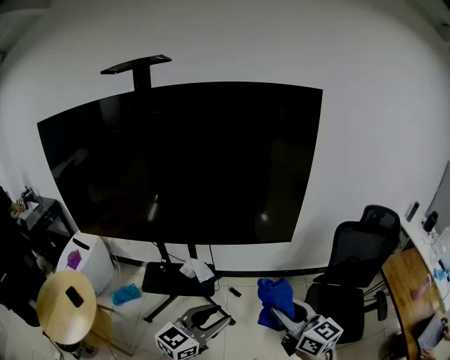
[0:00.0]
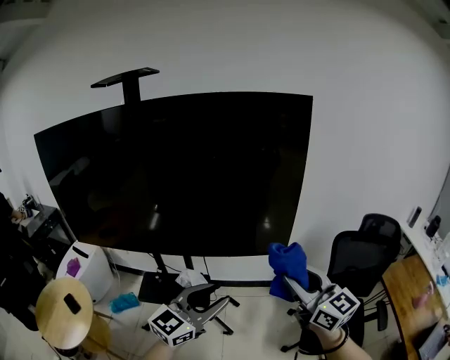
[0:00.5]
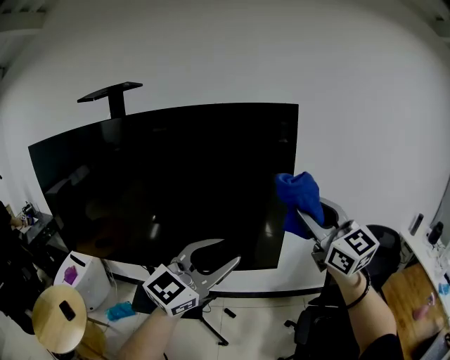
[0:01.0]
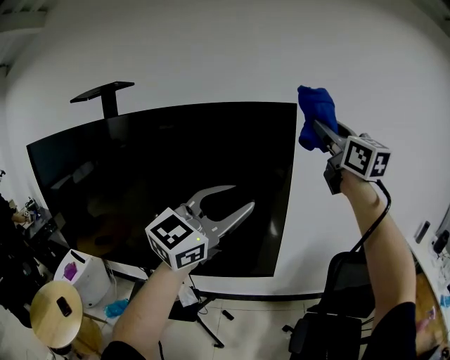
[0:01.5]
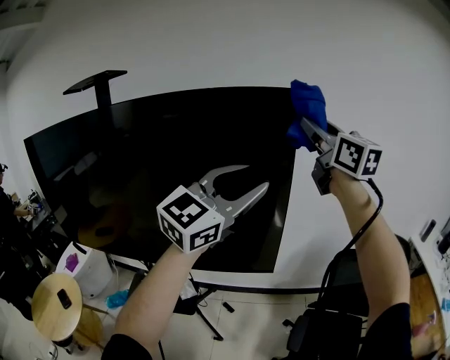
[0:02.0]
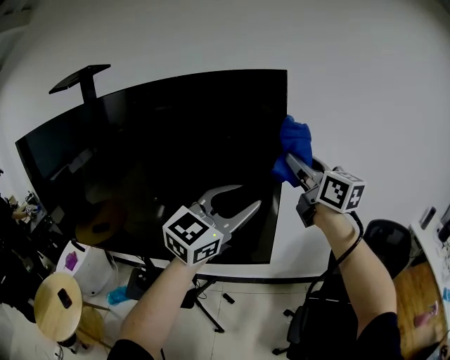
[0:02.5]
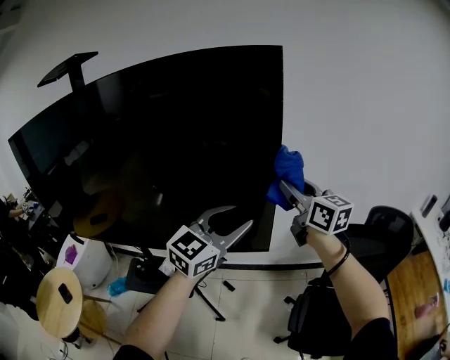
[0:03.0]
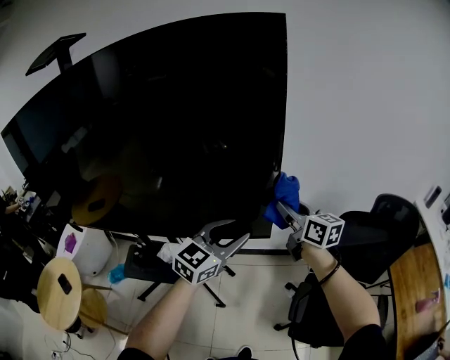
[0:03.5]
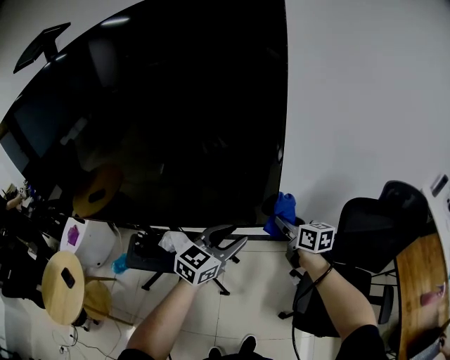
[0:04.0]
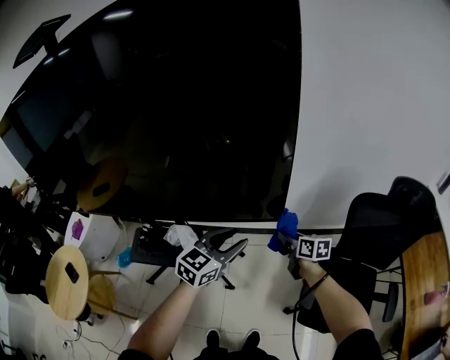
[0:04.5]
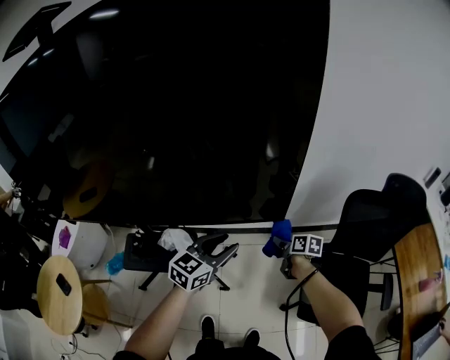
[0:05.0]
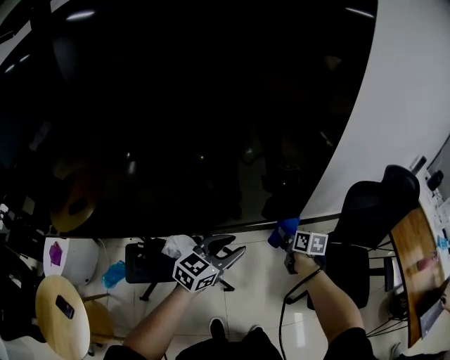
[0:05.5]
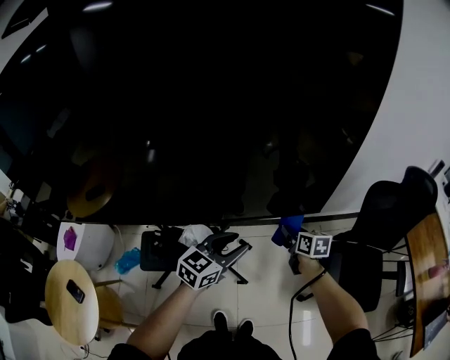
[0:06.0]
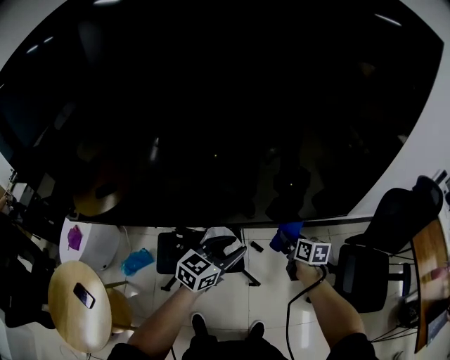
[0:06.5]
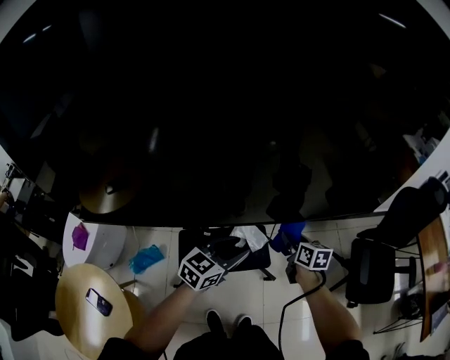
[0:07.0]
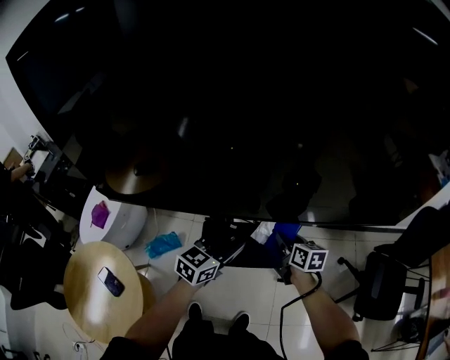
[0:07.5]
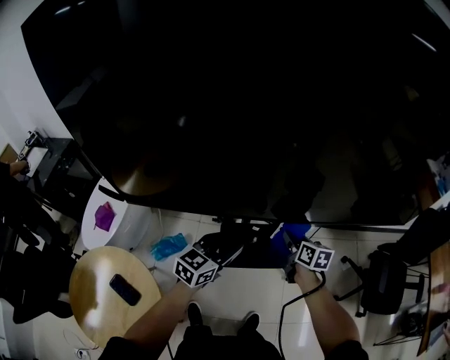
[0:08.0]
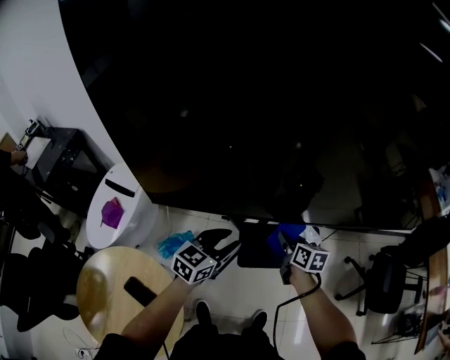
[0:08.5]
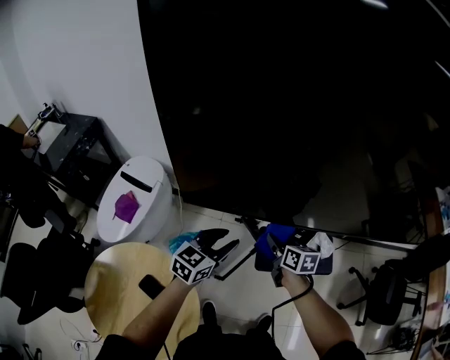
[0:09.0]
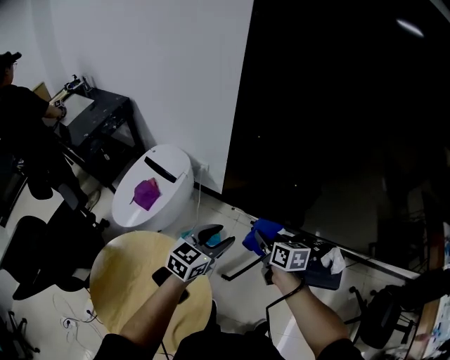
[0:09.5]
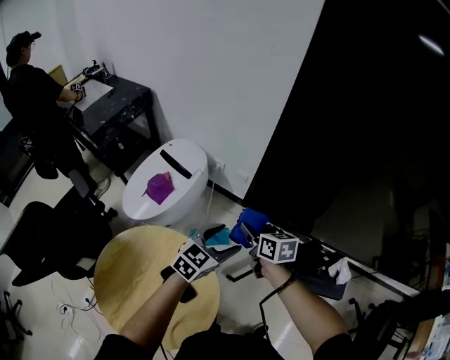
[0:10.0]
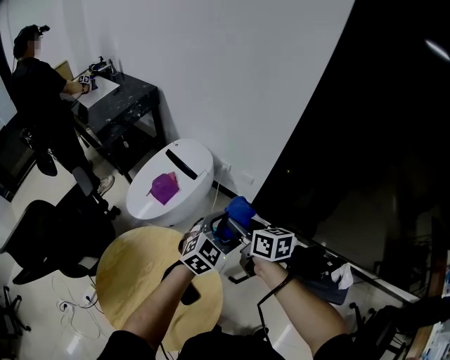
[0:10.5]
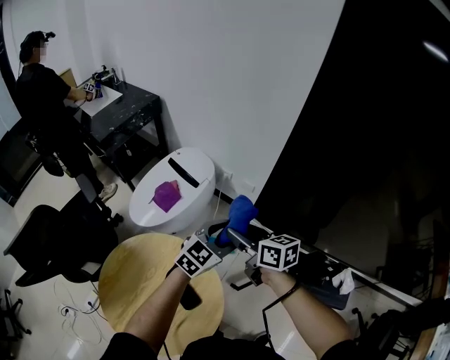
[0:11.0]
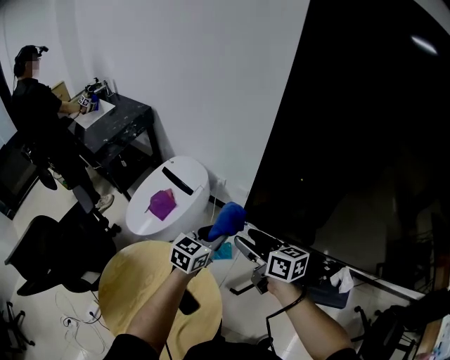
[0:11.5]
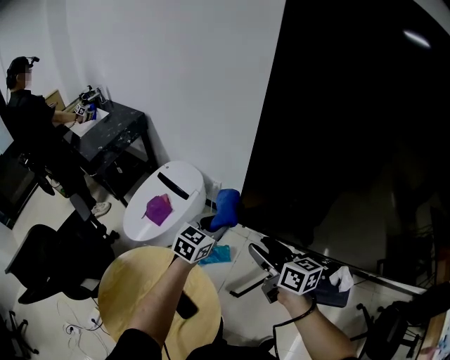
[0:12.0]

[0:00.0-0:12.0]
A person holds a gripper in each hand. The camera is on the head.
0:00.0 to 0:02.0: The left gripper goes some 50 cm upward, forward and to the right, and rotates about 30 degrees. The right gripper heads upward and forward, covering roughly 60 cm, and swivels roughly 20 degrees.
0:02.0 to 0:04.0: The grippers both shift downward by some 50 cm. The left gripper rotates some 30 degrees; the right gripper angles its fingers downward, by approximately 30 degrees.
0:04.0 to 0:06.0: The right gripper is displaced downward and to the left by some 15 cm, and rotates roughly 20 degrees. The left gripper heads to the left, covering approximately 15 cm.
0:06.0 to 0:08.0: Both grippers are carried to the left, approximately 50 cm.
0:08.0 to 0:10.0: The right gripper changes place by roughly 60 cm, and swivels approximately 40 degrees, while the left gripper shifts by roughly 40 cm, and opens its fingers.
0:10.0 to 0:12.0: The right gripper is displaced upward by approximately 10 cm, and opens; the left gripper goes roughly 10 cm forward, and closes its fingers.

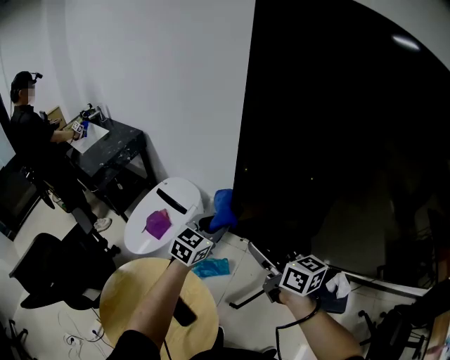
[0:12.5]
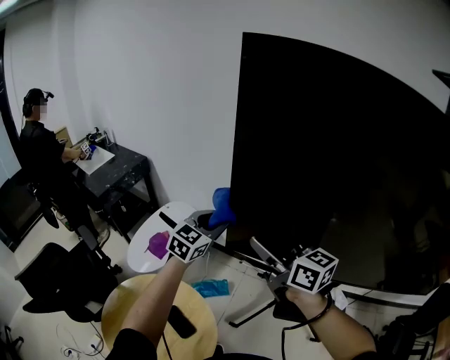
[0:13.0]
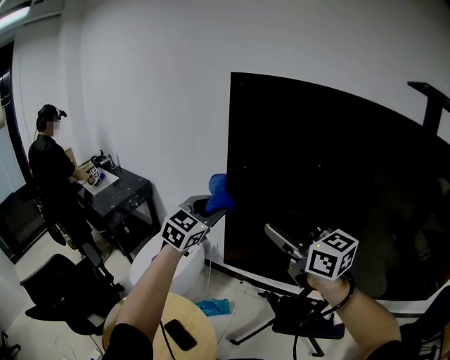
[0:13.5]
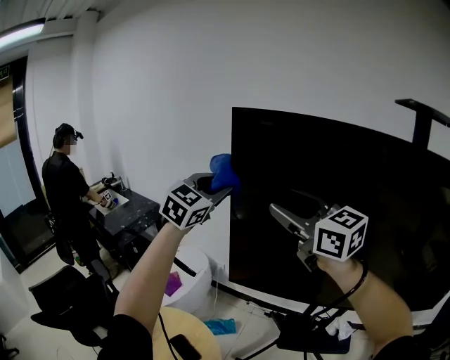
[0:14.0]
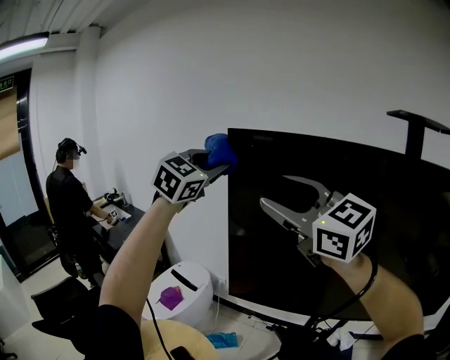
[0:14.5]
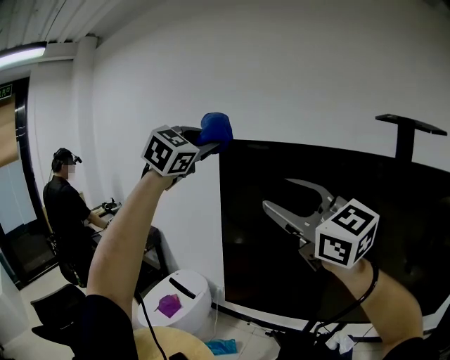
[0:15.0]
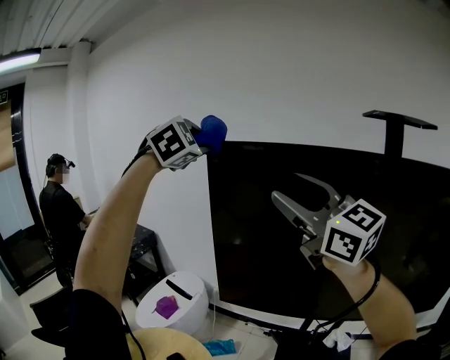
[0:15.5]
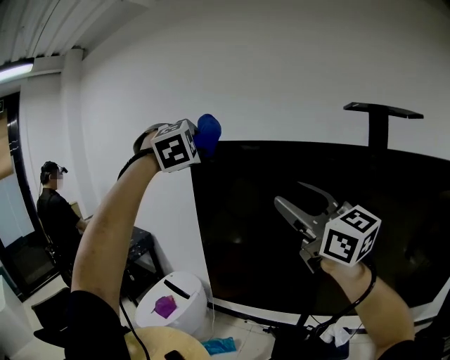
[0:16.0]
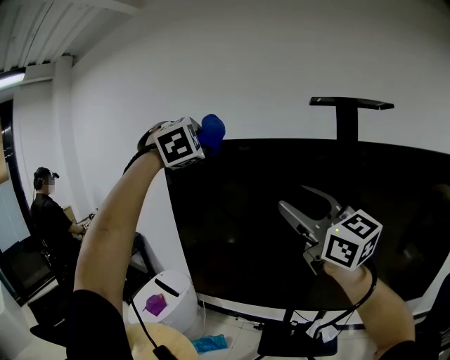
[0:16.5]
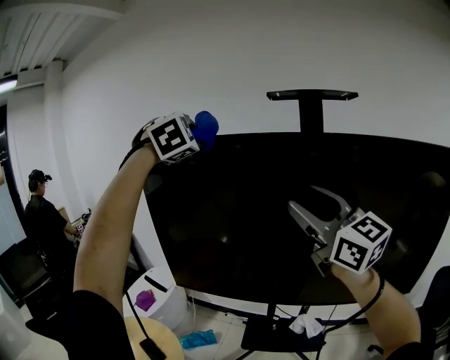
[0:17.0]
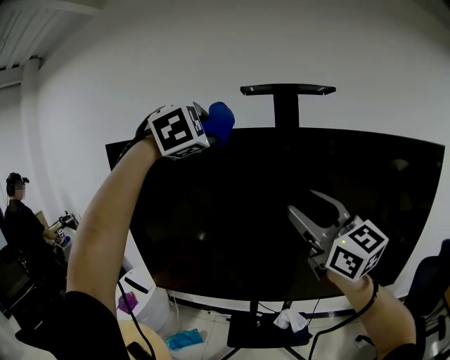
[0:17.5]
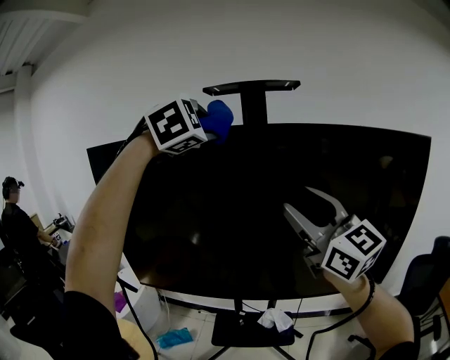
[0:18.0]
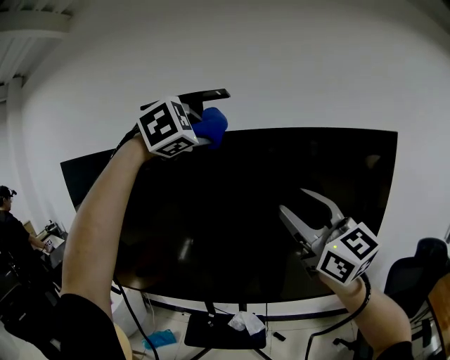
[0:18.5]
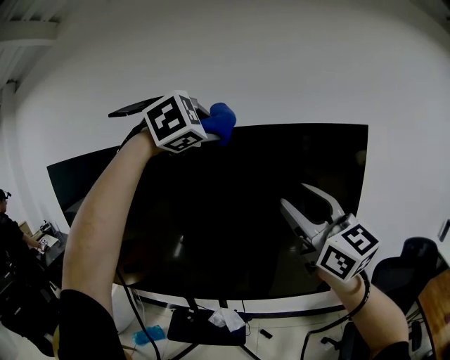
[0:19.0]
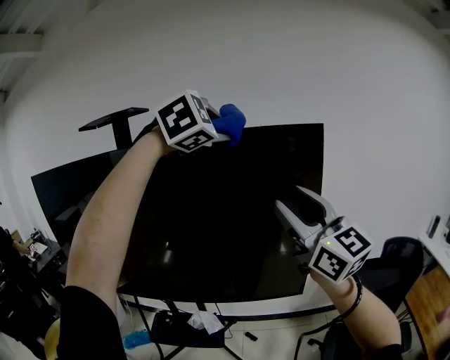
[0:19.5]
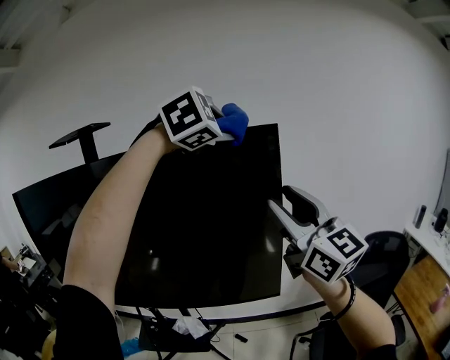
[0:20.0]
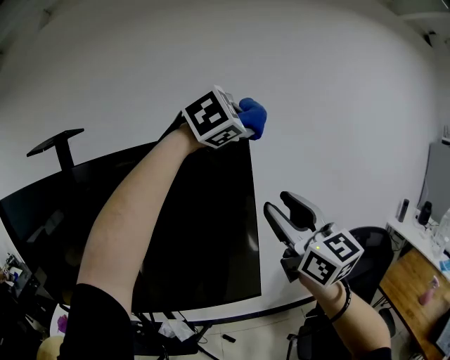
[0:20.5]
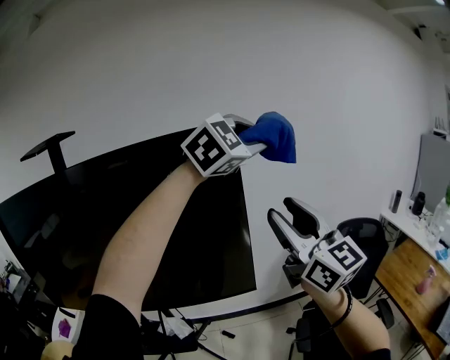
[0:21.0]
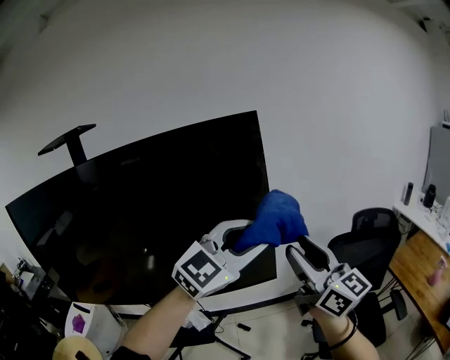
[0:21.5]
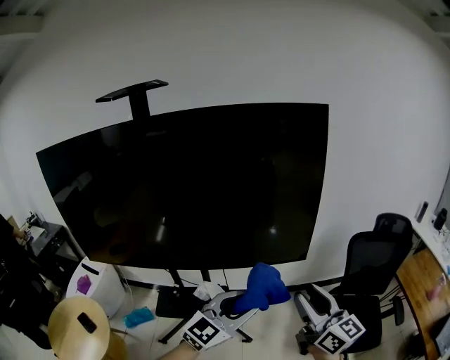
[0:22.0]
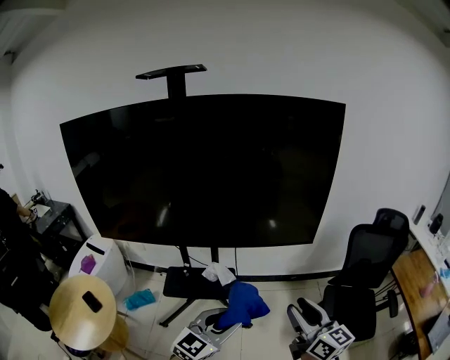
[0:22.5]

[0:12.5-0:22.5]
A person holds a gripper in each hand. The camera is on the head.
0:12.5 to 0:14.5: The grippers both shift upward by approximately 50 cm. The right gripper rolls counterclockwise, seen from behind, by about 50 degrees; the left gripper swivels roughly 40 degrees.
0:14.5 to 0:16.5: The left gripper travels to the right, backward and upward by approximately 20 cm, and rotates some 50 degrees; the right gripper moves to the right and backward, approximately 25 cm.
0:16.5 to 0:18.5: The two grippers travel together, to the right, some 50 cm.
0:18.5 to 0:20.5: The two grippers travel together, to the right, about 50 cm. The left gripper changes its angle by some 20 degrees.
0:20.5 to 0:22.5: The right gripper moves backward, downward and to the left, roughly 50 cm, and swivels about 30 degrees. Meanwhile the left gripper heads backward, downward and to the left, covering approximately 80 cm, and rolls counterclockwise, seen from behind, by approximately 50 degrees.

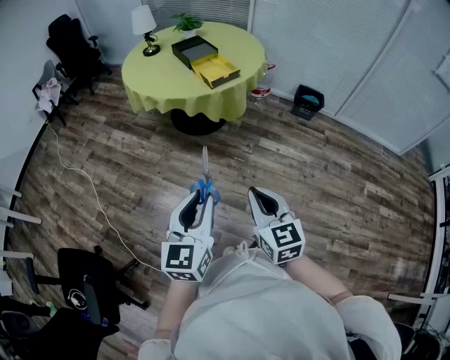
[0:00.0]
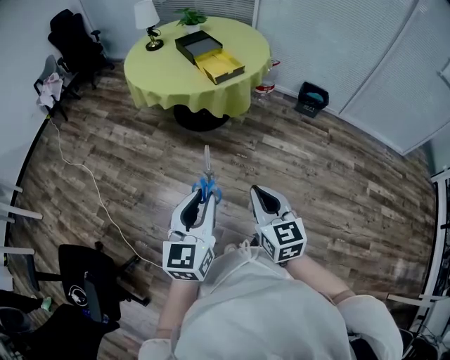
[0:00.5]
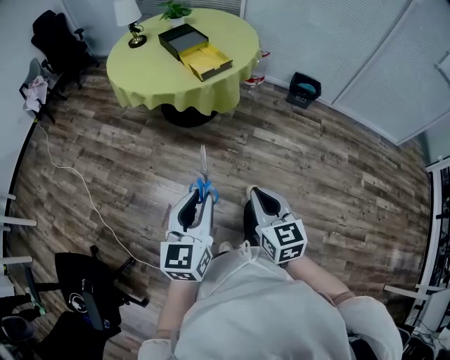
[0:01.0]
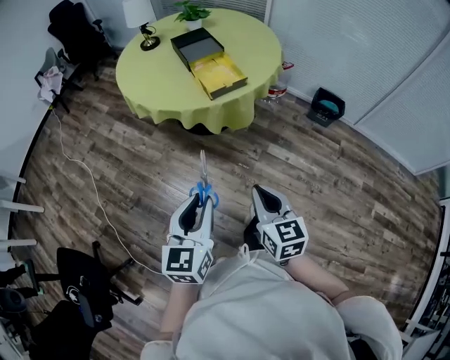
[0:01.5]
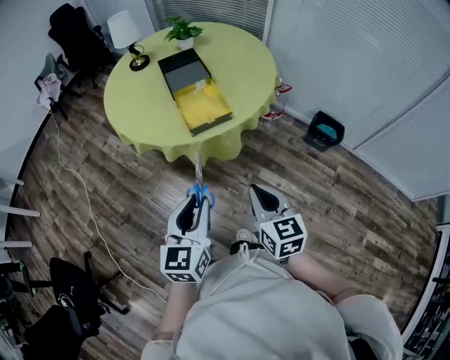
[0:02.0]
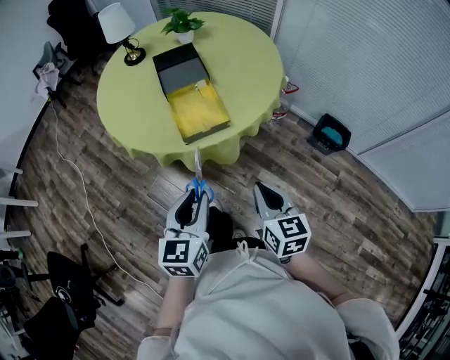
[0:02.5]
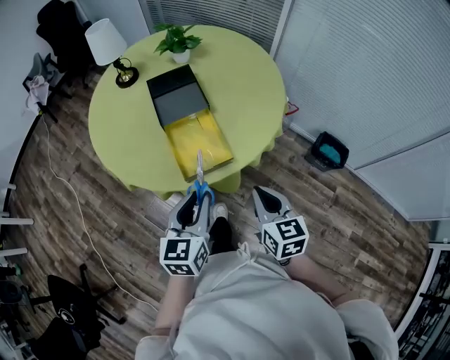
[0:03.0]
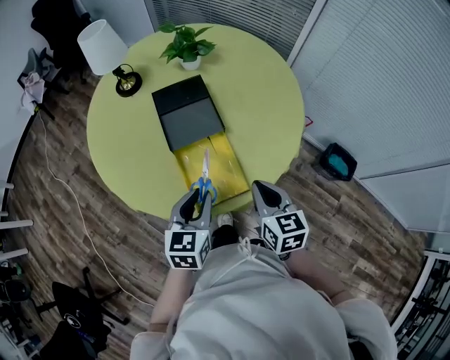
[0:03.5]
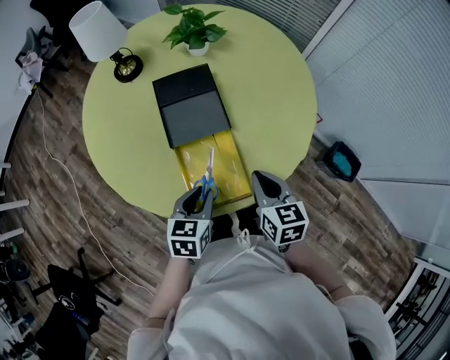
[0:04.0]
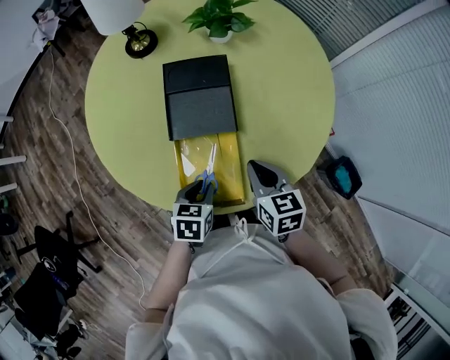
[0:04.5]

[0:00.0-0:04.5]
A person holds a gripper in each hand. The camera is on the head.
0:00.0 to 0:02.0: The two grippers go approximately 40 cm forward and to the right.
0:02.0 to 0:04.5: The pair of grippers is taken forward, about 50 cm. The left gripper is displaced downward by some 20 cm, and tilts its fingers roughly 40 degrees downward. Meanwhile the right gripper changes its angle by approximately 30 degrees.
